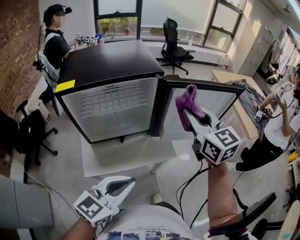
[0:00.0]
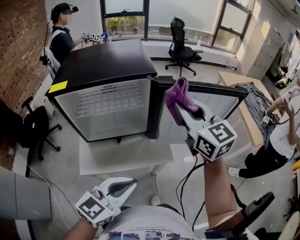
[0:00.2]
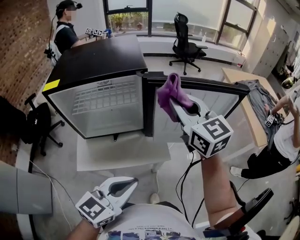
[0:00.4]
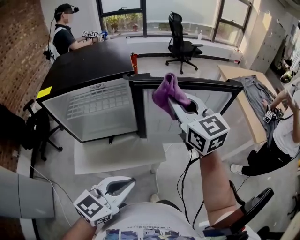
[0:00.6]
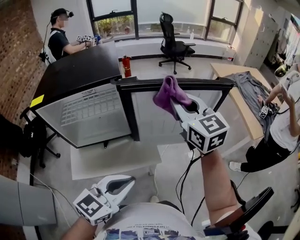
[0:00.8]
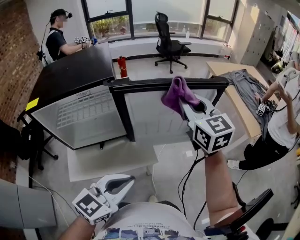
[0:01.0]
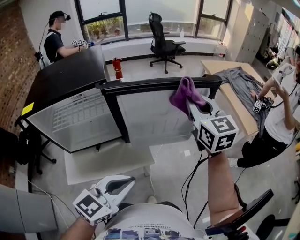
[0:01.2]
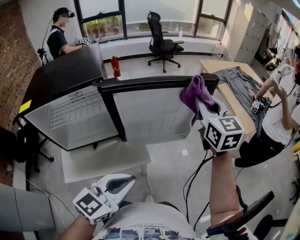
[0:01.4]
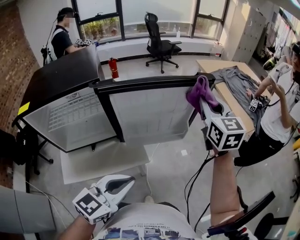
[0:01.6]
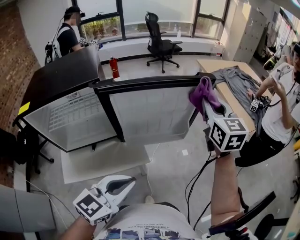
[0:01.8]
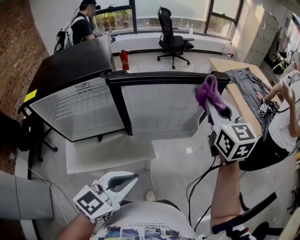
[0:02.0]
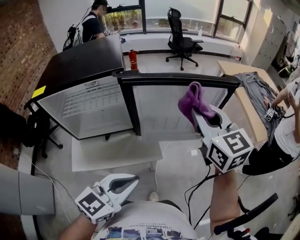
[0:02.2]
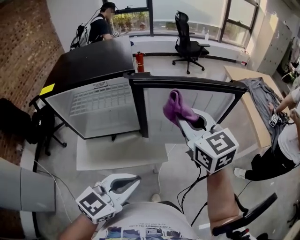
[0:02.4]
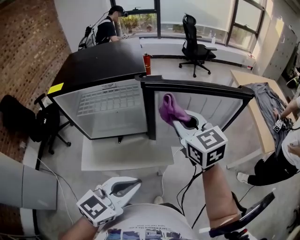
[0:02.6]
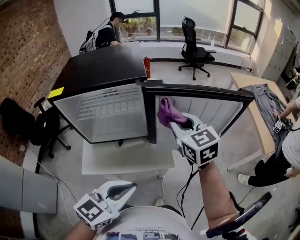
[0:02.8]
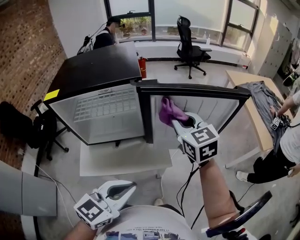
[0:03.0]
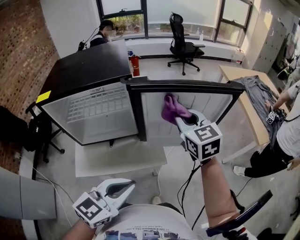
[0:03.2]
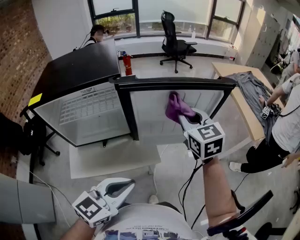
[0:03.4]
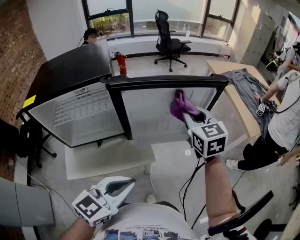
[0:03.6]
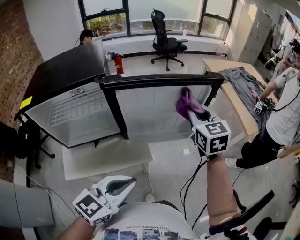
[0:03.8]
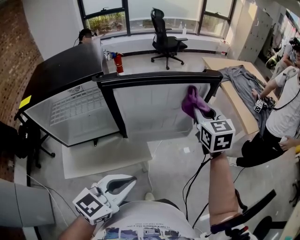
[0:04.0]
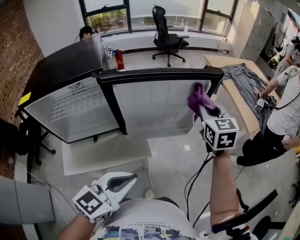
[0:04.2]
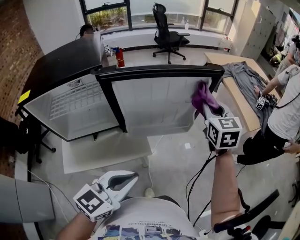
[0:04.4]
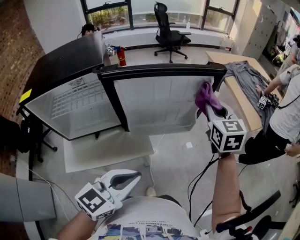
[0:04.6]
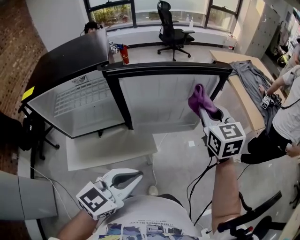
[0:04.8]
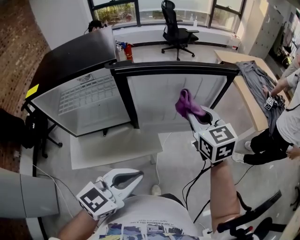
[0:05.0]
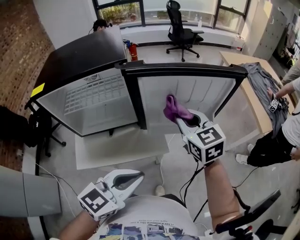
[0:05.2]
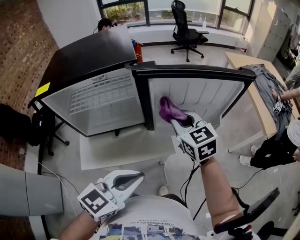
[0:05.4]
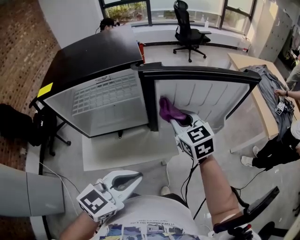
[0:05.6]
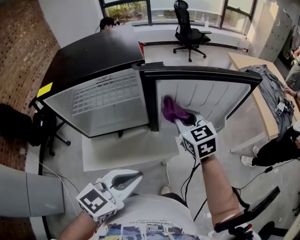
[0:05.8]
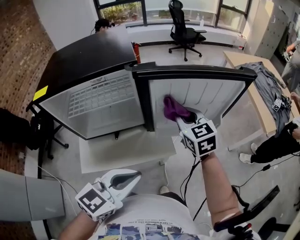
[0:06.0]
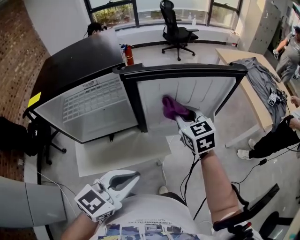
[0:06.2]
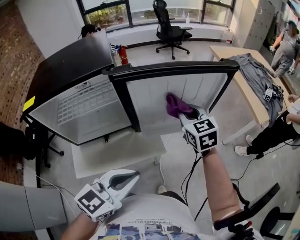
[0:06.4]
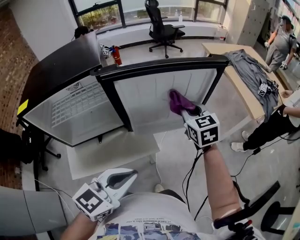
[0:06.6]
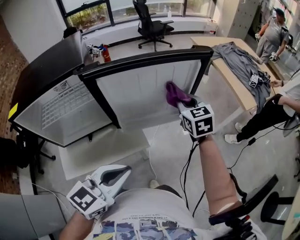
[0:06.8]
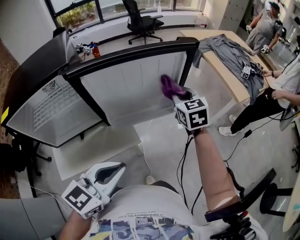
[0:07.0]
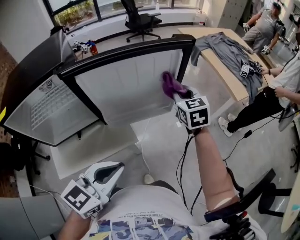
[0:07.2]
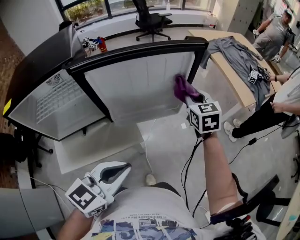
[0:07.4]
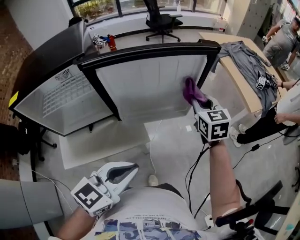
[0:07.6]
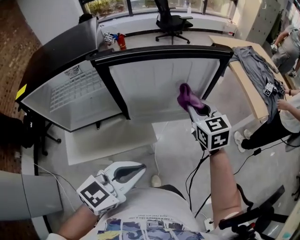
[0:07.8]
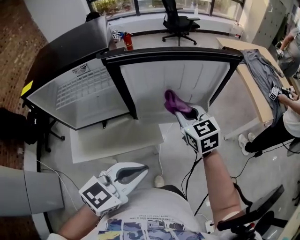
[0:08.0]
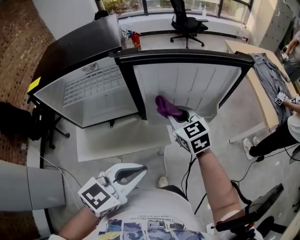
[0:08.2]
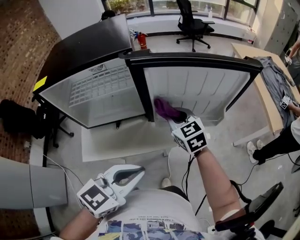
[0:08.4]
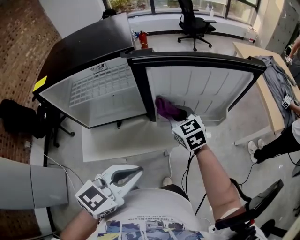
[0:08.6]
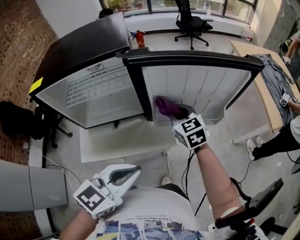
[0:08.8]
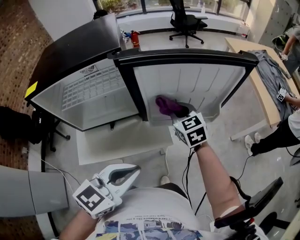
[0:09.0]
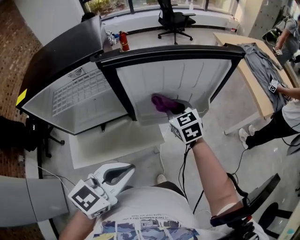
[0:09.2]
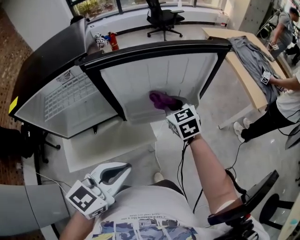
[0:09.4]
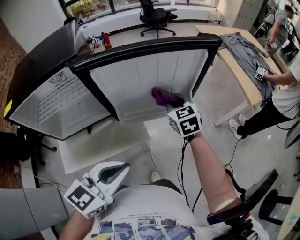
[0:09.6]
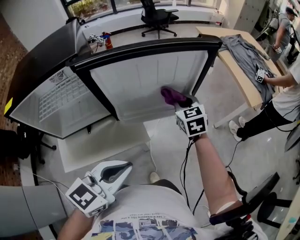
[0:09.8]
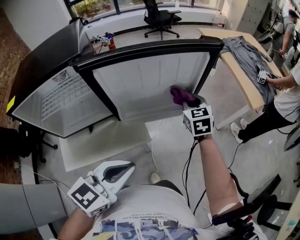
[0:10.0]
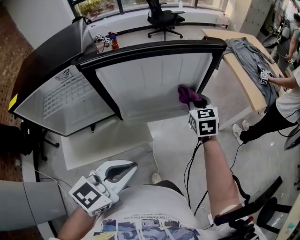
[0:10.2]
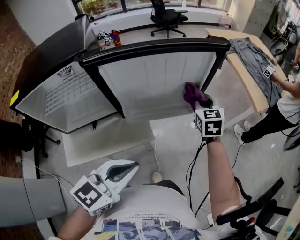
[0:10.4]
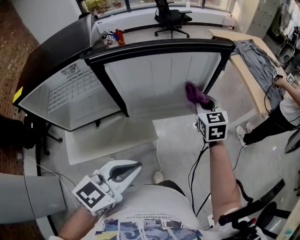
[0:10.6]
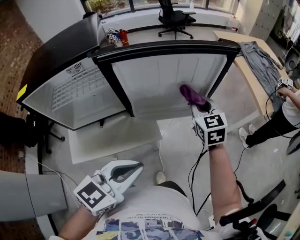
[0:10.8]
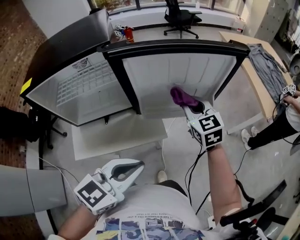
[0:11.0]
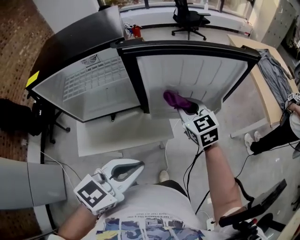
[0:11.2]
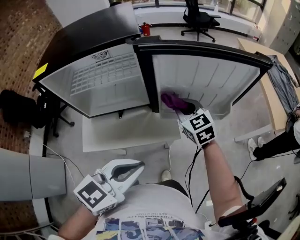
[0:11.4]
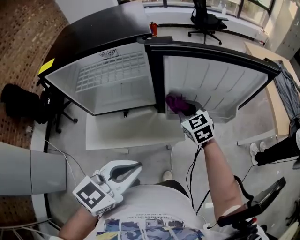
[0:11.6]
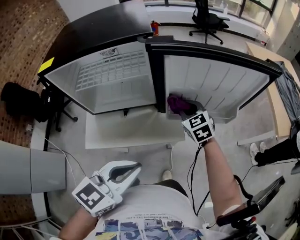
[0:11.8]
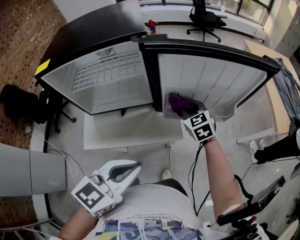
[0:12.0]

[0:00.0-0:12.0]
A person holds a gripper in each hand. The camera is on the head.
0:00.0 to 0:01.6: The right gripper travels to the right and forward by about 25 cm, and changes its angle by roughly 20 degrees. Meanwhile the left gripper is displaced to the right and forward by roughly 15 cm.
0:01.6 to 0:03.0: The right gripper goes about 25 cm to the left, and swivels roughly 30 degrees, while the left gripper moves to the left, some 10 cm.
0:03.0 to 0:04.4: The left gripper moves to the right, roughly 10 cm, while the right gripper goes approximately 25 cm to the right, and changes its angle by roughly 30 degrees.
0:04.4 to 0:06.0: The left gripper shifts about 10 cm to the left; the right gripper heads to the left, covering about 20 cm, and turns by about 20 degrees.
0:06.0 to 0:07.6: The left gripper goes some 10 cm to the right, while the right gripper moves to the right, some 20 cm.
0:07.6 to 0:09.0: The left gripper shifts roughly 10 cm to the left, while the right gripper goes approximately 20 cm to the left, and turns by some 20 degrees.
0:09.0 to 0:10.4: The left gripper goes approximately 5 cm to the right. Meanwhile the right gripper moves to the right, approximately 20 cm, and rotates some 30 degrees.
0:10.4 to 0:12.0: The right gripper ends up about 25 cm from where it was, and turns by some 30 degrees. The left gripper shifts by approximately 10 cm.

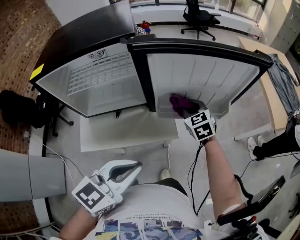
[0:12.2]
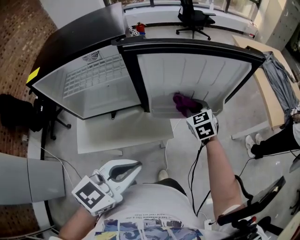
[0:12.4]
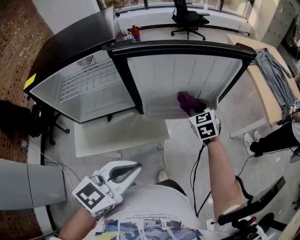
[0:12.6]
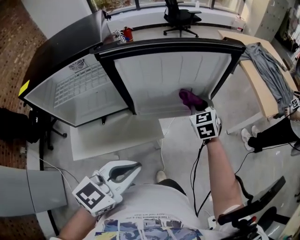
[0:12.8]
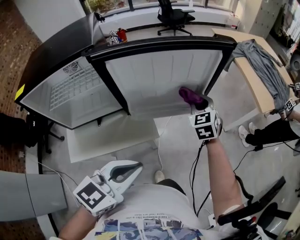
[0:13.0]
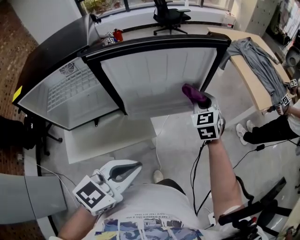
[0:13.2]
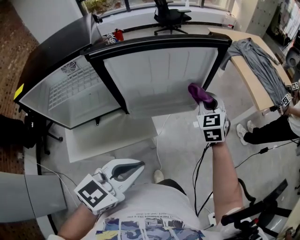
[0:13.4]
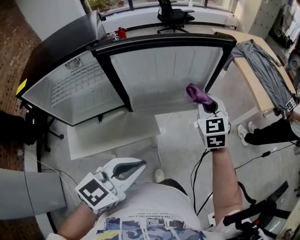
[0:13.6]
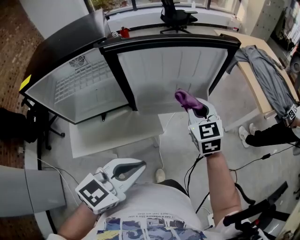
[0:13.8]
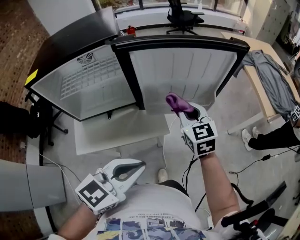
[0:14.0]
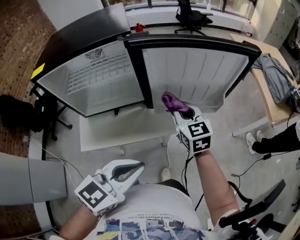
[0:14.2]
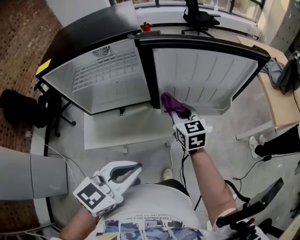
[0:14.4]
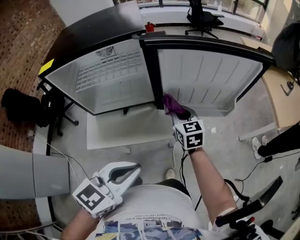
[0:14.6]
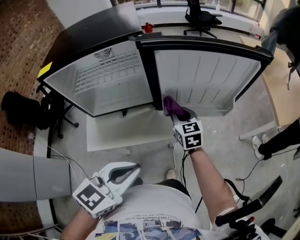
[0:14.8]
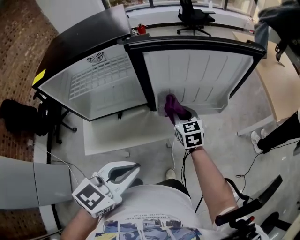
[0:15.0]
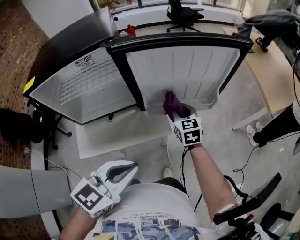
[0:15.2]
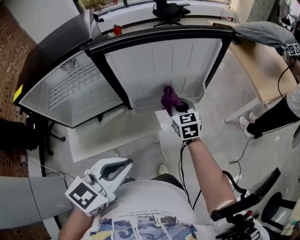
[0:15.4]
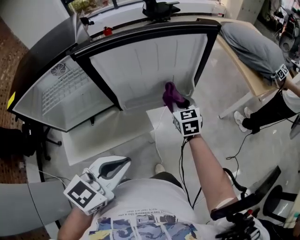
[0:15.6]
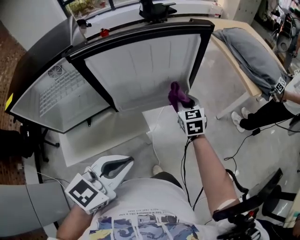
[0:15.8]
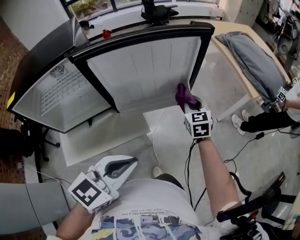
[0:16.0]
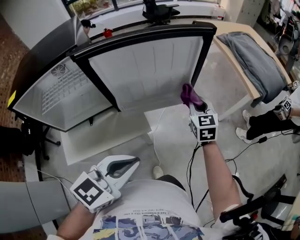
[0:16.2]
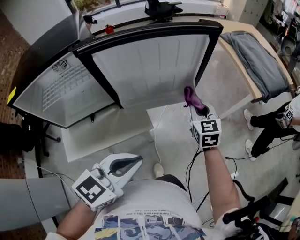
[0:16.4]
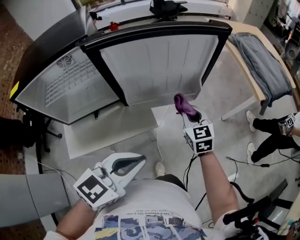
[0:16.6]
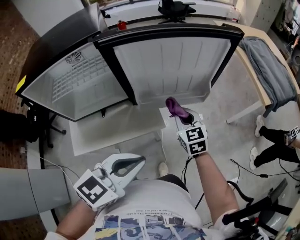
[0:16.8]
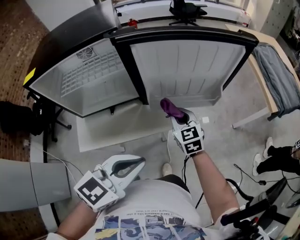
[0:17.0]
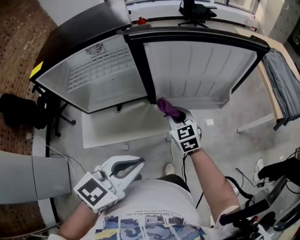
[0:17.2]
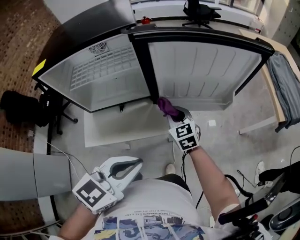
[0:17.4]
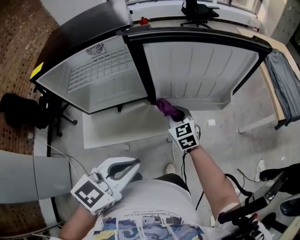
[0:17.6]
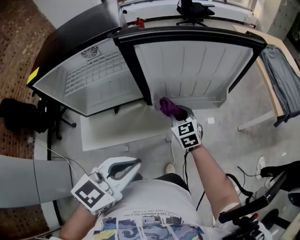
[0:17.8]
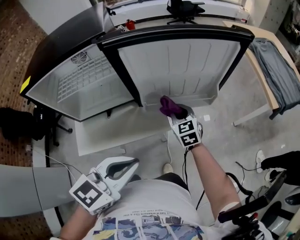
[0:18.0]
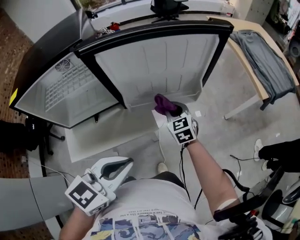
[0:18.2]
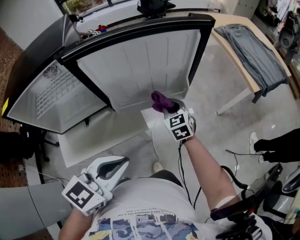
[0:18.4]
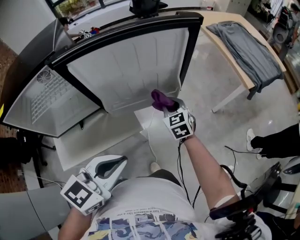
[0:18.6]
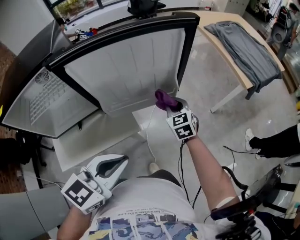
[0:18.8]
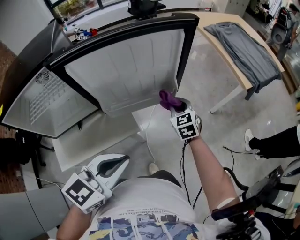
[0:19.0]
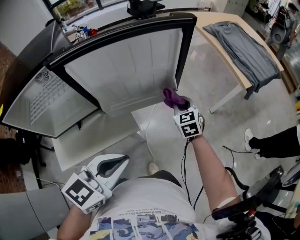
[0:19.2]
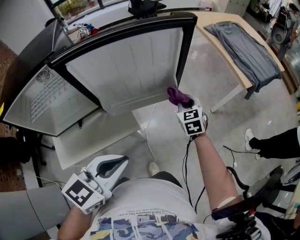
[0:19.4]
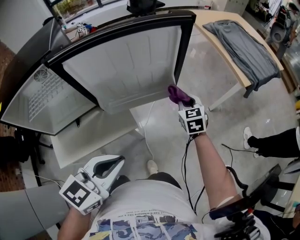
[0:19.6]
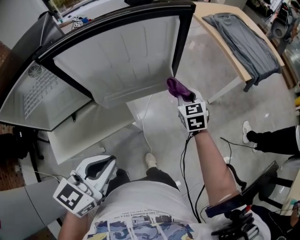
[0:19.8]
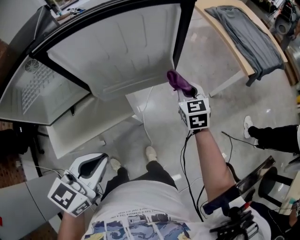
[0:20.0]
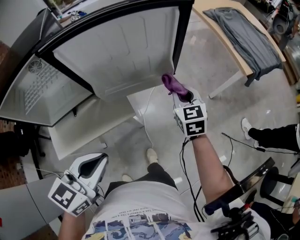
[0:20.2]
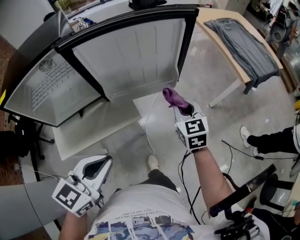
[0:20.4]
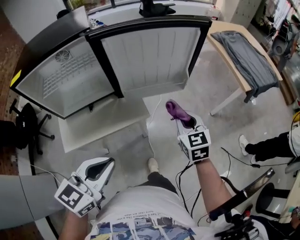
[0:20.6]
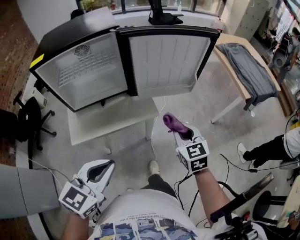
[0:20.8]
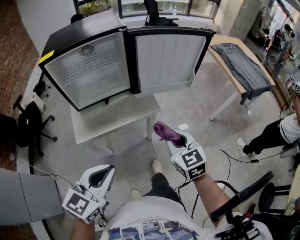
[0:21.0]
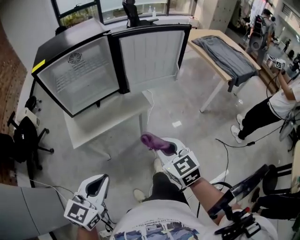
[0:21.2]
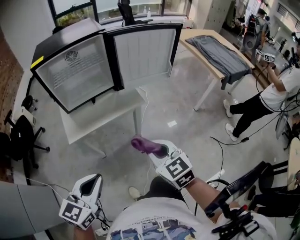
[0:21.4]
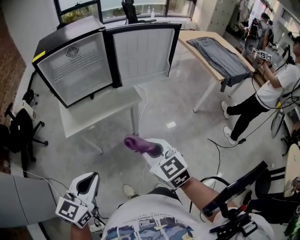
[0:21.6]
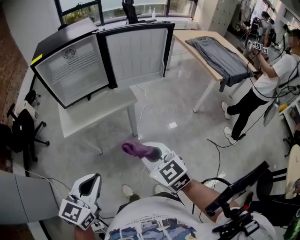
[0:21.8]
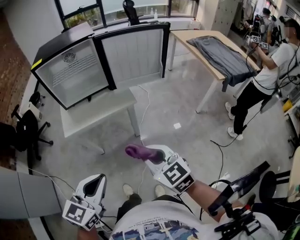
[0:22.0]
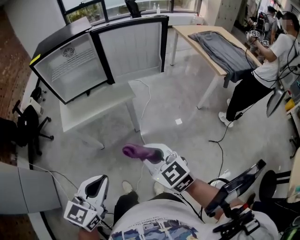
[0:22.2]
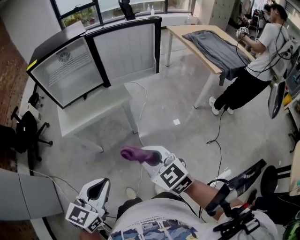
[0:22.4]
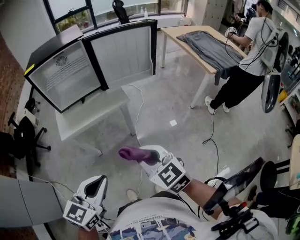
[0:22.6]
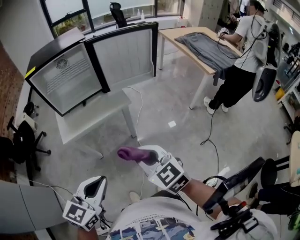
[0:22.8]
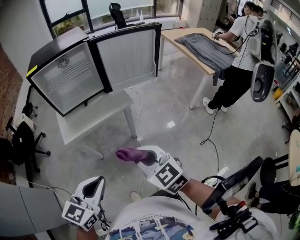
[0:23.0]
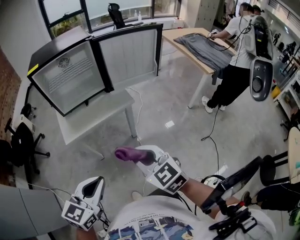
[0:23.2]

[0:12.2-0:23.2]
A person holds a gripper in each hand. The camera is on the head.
0:12.2 to 0:13.8: The left gripper heads to the right, covering some 5 cm. The right gripper is displaced to the right and upward by roughly 15 cm, and swivels roughly 20 degrees.
0:13.8 to 0:15.4: The right gripper heads downward, covering approximately 10 cm, and reaches about 15 cm to the left, then returns.
0:15.4 to 0:17.0: The right gripper is displaced backward by approximately 10 cm, and goes to the right and returns, approximately 15 cm each way.
0:17.0 to 0:18.4: The right gripper heads to the right and forward, covering about 10 cm.
0:18.4 to 0:20.0: The right gripper goes roughly 15 cm to the right.
0:20.0 to 0:21.6: The left gripper is displaced backward by about 30 cm. The right gripper is displaced backward and to the left by about 50 cm, and changes its angle by roughly 30 degrees.
0:21.6 to 0:23.2: The left gripper goes to the right and returns, roughly 10 cm each way. Meanwhile the right gripper moves approximately 5 cm to the right and comes back.
